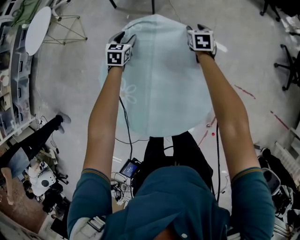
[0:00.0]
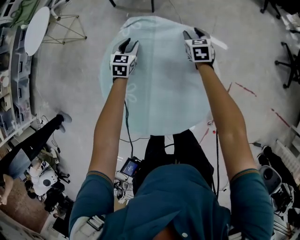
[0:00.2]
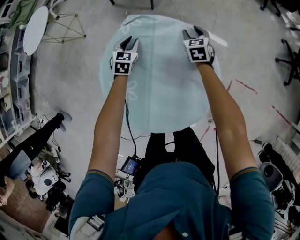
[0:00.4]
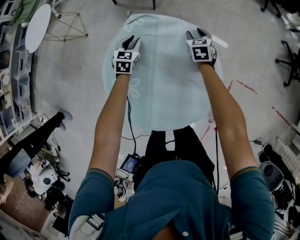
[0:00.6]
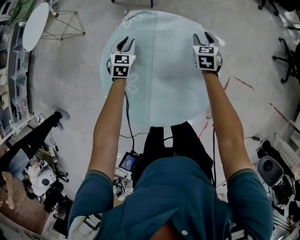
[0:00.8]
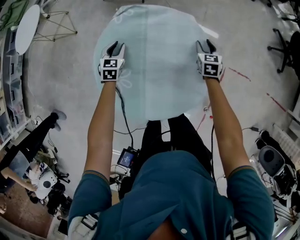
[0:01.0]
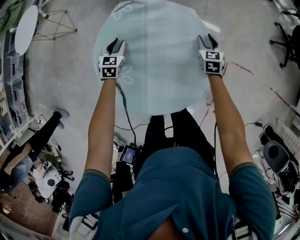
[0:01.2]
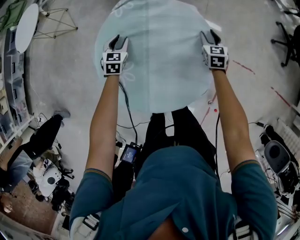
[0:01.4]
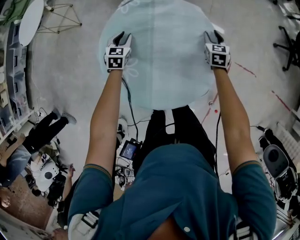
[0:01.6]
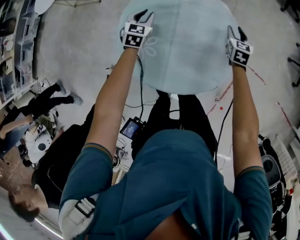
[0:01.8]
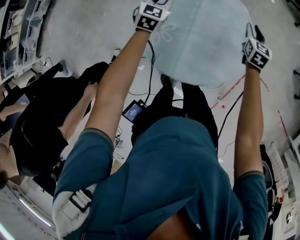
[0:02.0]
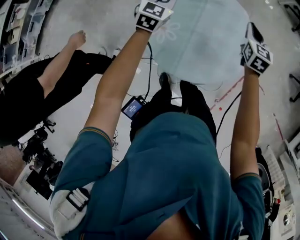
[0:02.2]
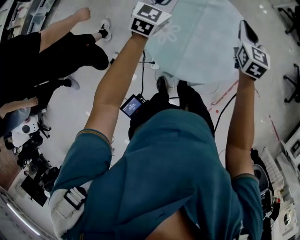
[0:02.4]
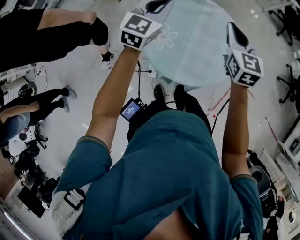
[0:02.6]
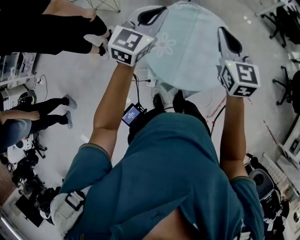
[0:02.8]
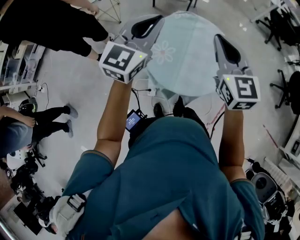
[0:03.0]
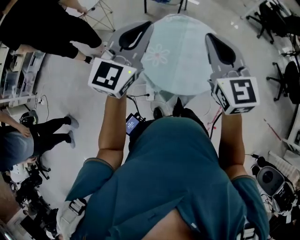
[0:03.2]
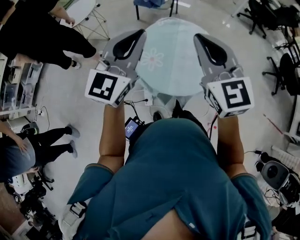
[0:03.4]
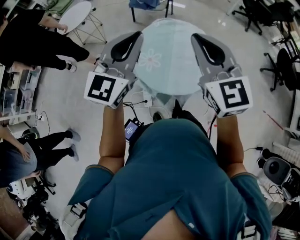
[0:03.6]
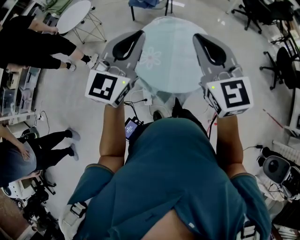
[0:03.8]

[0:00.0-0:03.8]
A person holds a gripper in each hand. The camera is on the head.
0.0 to 1.2 s: The right gripper travels backward and to the right by some 20 cm. The left gripper is displaced backward by some 15 cm, and closes its fingers.
1.2 to 2.6 s: The right gripper shifts approximately 40 cm upward and to the left, turns by about 30 degrees, and closes its fingers. The left gripper moves upward, approximately 35 cm, rotates about 30 degrees, and closes up.
2.6 to 3.8 s: The right gripper is displaced backward, upward and to the left by some 30 cm. The left gripper is displaced backward and upward by approximately 25 cm.

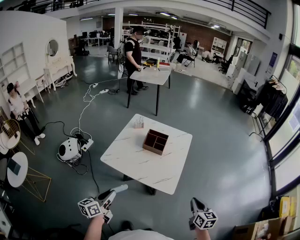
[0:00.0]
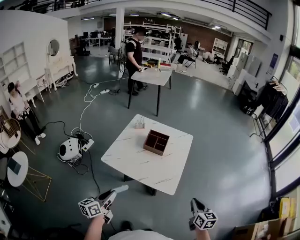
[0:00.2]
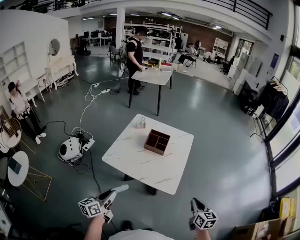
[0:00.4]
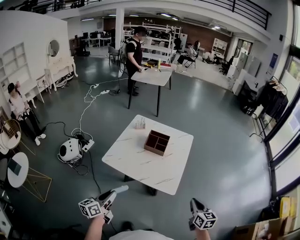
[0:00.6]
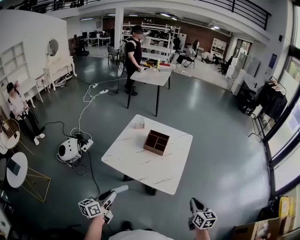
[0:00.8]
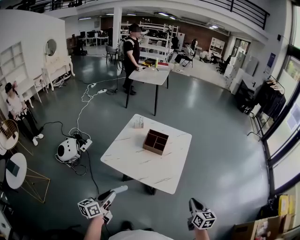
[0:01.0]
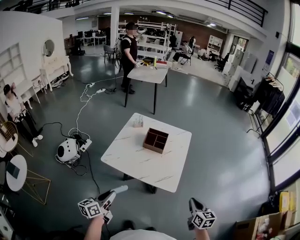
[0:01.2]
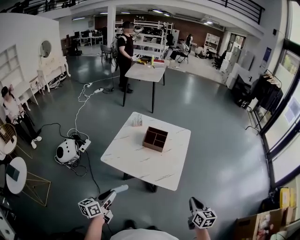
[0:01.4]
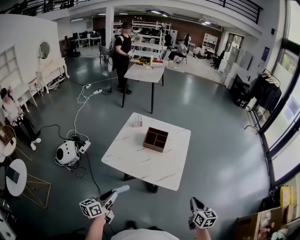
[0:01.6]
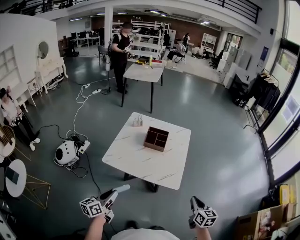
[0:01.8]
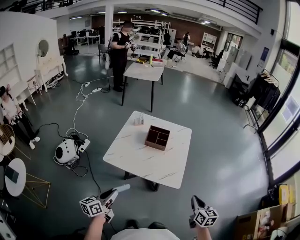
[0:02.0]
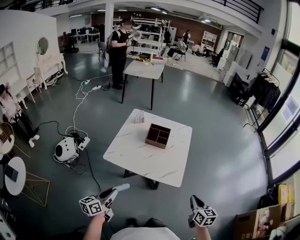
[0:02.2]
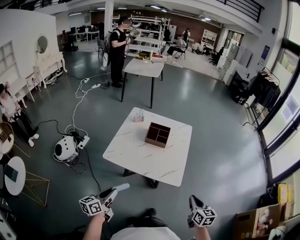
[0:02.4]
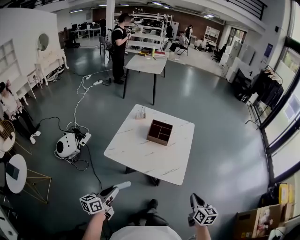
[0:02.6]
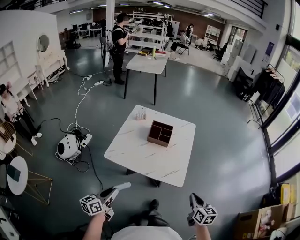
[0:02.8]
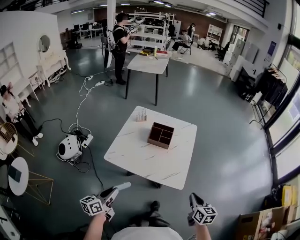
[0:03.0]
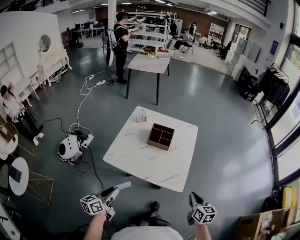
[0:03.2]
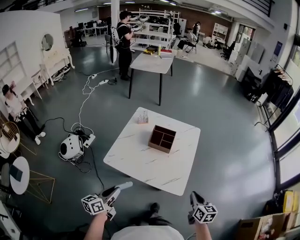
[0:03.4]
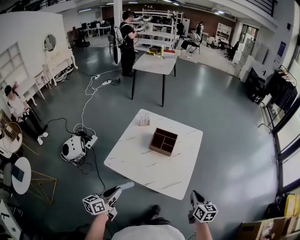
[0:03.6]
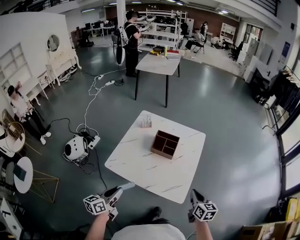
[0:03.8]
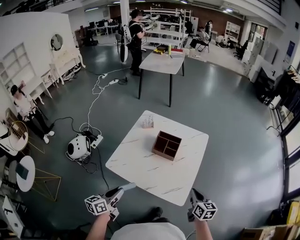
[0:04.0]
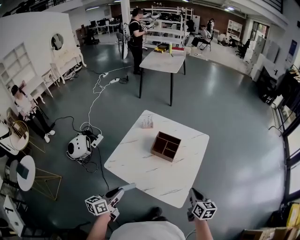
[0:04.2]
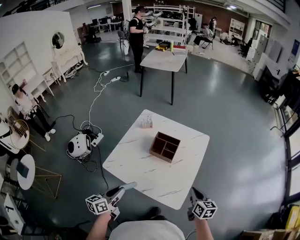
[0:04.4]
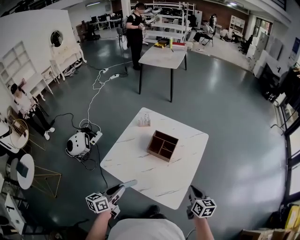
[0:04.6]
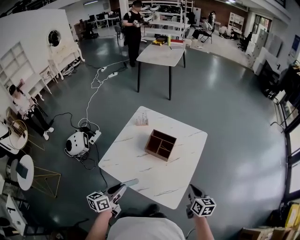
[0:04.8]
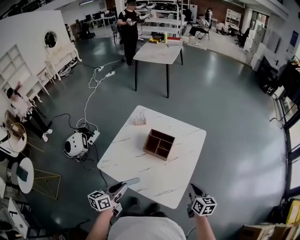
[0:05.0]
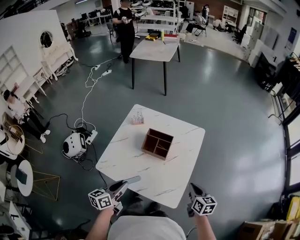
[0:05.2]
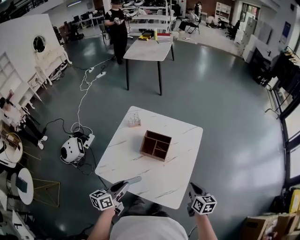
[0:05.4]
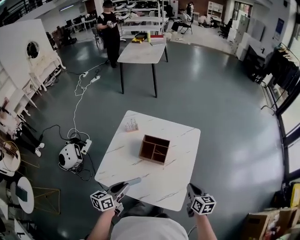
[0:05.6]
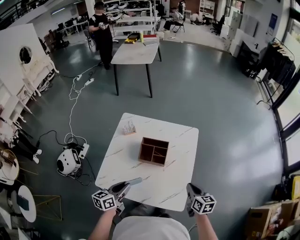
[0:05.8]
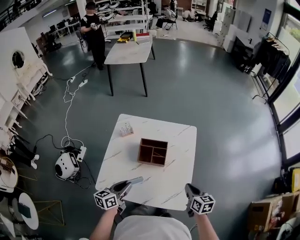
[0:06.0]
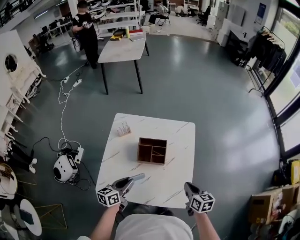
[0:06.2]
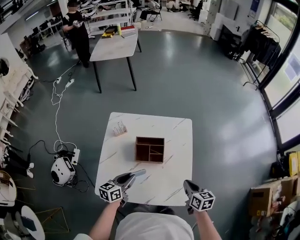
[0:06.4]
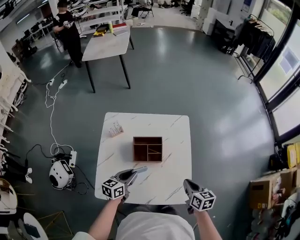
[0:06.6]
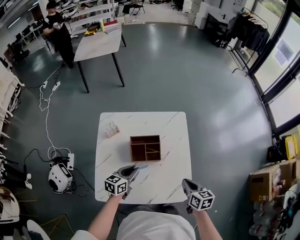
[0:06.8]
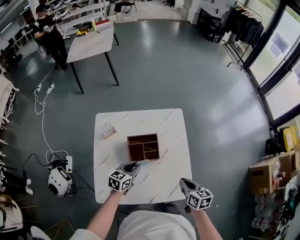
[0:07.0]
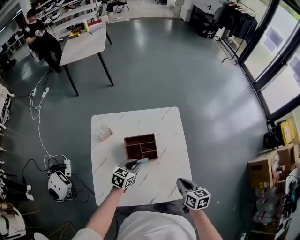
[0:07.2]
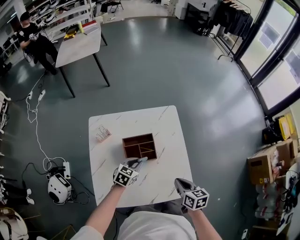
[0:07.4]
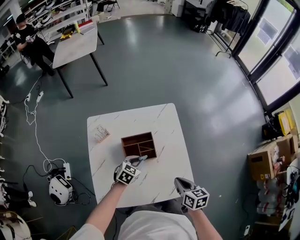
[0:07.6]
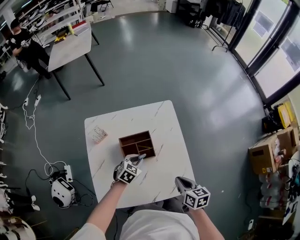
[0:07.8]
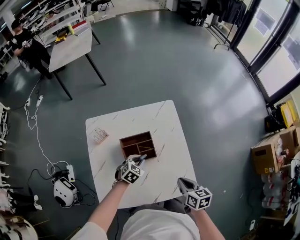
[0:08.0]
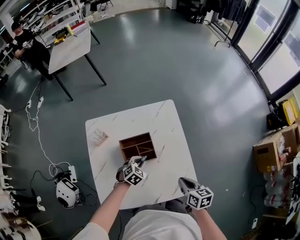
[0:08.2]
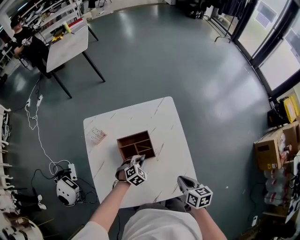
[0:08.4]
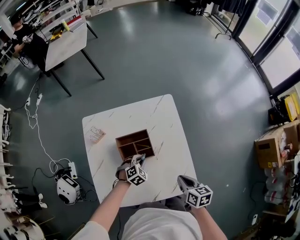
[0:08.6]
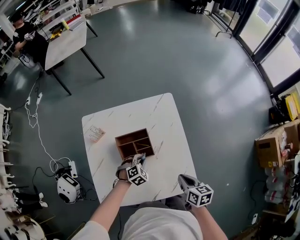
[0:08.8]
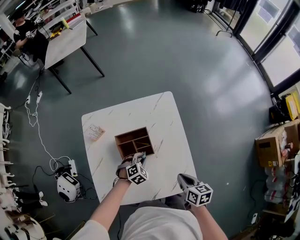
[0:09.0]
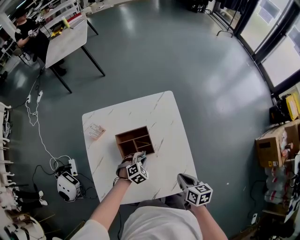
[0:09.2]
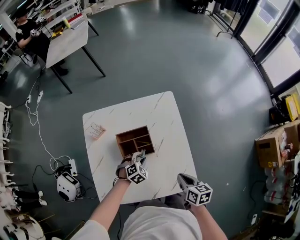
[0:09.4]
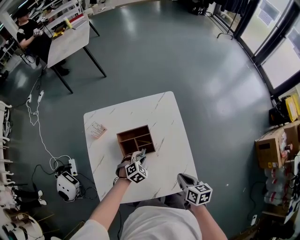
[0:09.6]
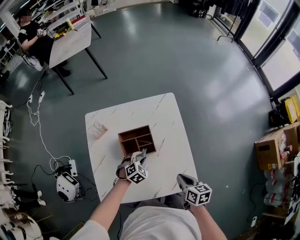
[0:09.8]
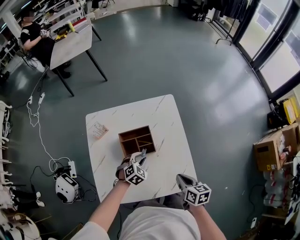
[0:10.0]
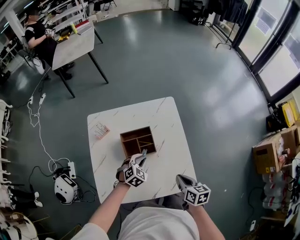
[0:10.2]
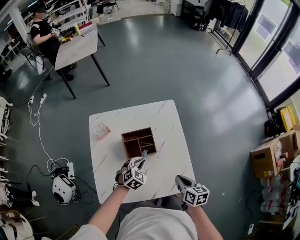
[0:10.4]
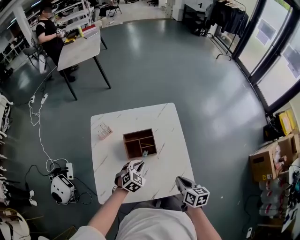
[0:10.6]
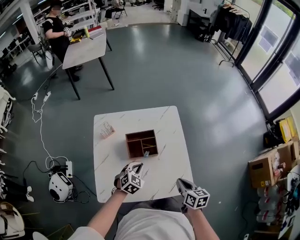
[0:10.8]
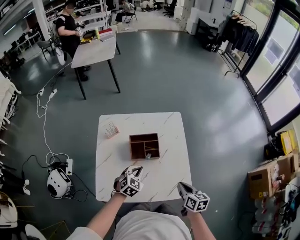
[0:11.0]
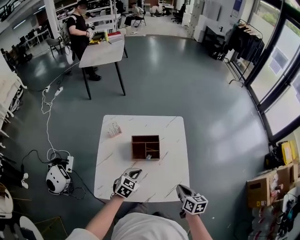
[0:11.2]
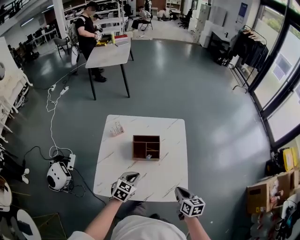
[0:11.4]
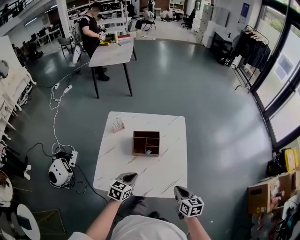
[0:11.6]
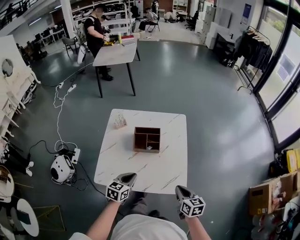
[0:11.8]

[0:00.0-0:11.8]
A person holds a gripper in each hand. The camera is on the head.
0.0 to 1.4 s: The grippers stay close to where they were, moving slightly.
1.4 to 3.0 s: The right gripper shifts by roughly 5 cm.
3.0 to 4.4 s: The left gripper shifts about 15 cm forward and to the right. The right gripper goes some 20 cm forward.
4.4 to 6.0 s: The left gripper is displaced forward by approximately 20 cm, and rotates some 20 degrees. The right gripper travels forward by approximately 5 cm.
6.0 to 7.4 s: The left gripper moves forward and downward, some 20 cm, and changes its angle by approximately 50 degrees. The right gripper goes some 10 cm to the left.
7.4 to 8.8 s: The left gripper moves downward, about 10 cm, and swivels approximately 40 degrees, while the right gripper changes place by about 5 cm.
8.8 to 10.4 s: The left gripper travels upward by some 10 cm.
10.4 to 11.8 s: The right gripper travels backward by roughly 10 cm. Meanwhile the left gripper goes some 20 cm backward and upward, and rolls counterclockwise, seen from behind, by about 40 degrees.

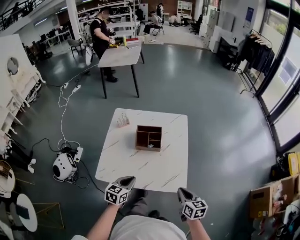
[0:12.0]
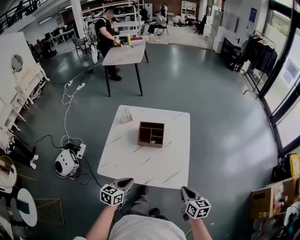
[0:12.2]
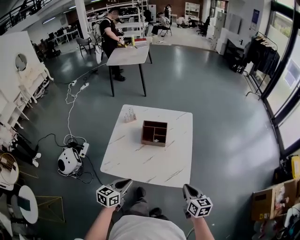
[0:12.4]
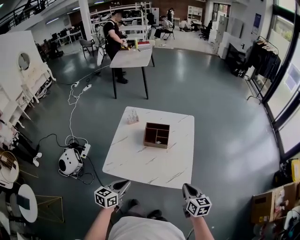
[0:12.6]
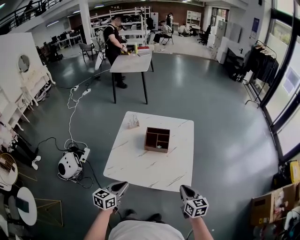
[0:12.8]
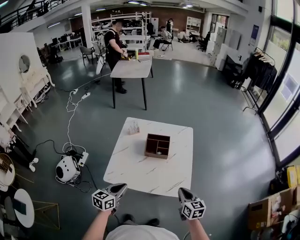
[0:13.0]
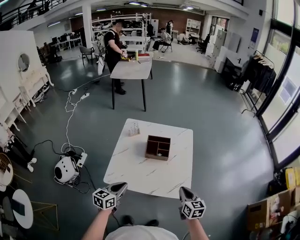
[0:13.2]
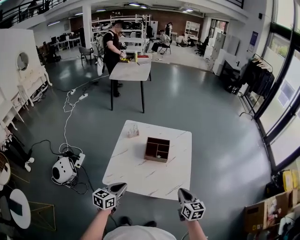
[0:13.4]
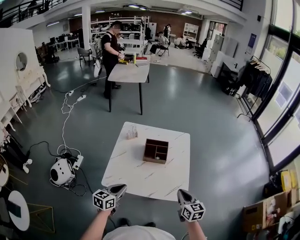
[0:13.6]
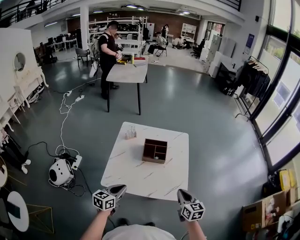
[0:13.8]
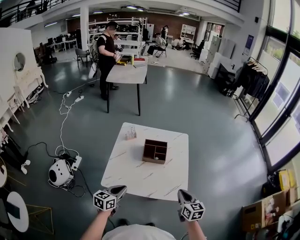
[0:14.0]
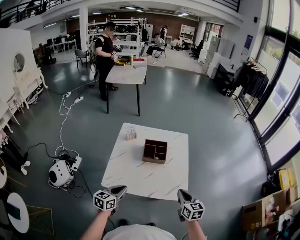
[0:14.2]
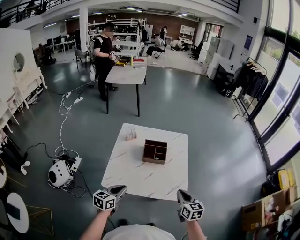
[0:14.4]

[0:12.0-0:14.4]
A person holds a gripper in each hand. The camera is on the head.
12.0 to 13.2 s: The right gripper goes some 5 cm upward and to the left. The left gripper goes roughly 15 cm to the left, upward and backward.
13.2 to 14.4 s: The grippers stay close to where they were, moving slightly.

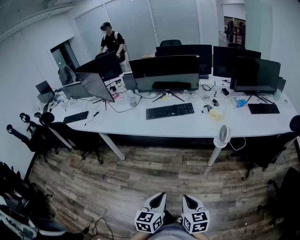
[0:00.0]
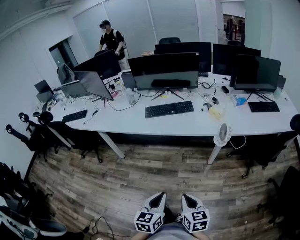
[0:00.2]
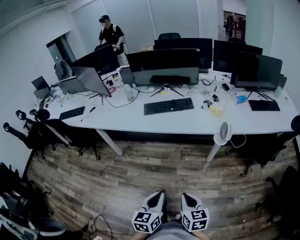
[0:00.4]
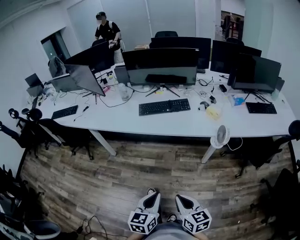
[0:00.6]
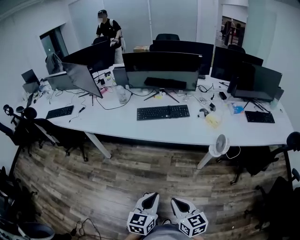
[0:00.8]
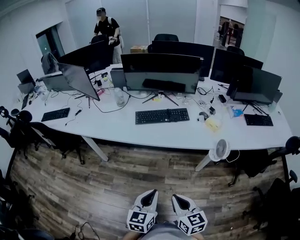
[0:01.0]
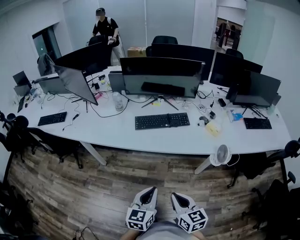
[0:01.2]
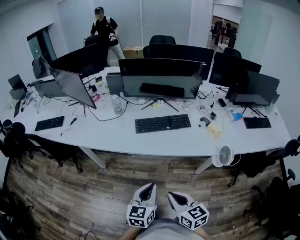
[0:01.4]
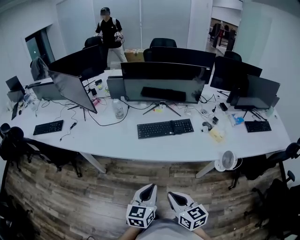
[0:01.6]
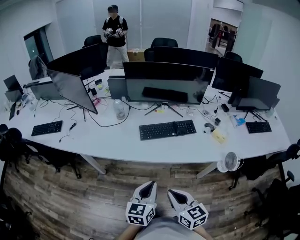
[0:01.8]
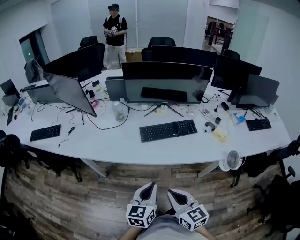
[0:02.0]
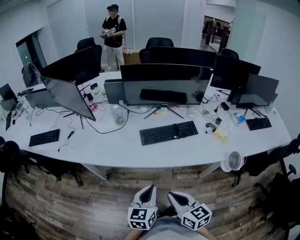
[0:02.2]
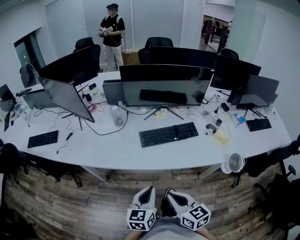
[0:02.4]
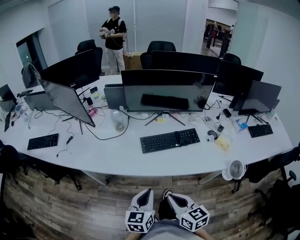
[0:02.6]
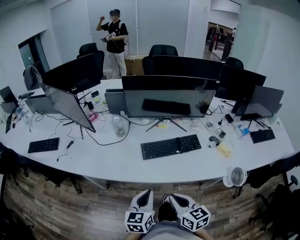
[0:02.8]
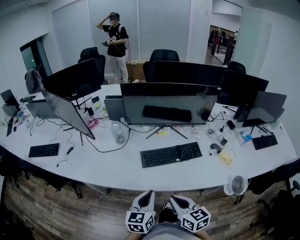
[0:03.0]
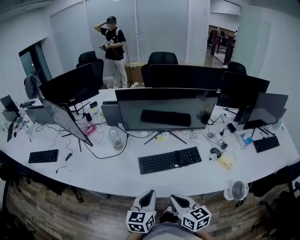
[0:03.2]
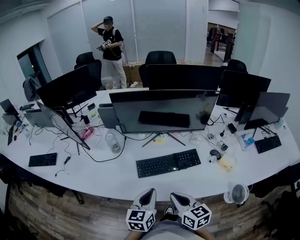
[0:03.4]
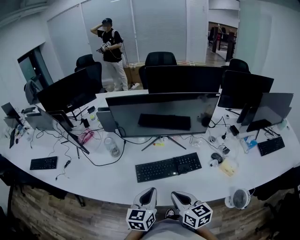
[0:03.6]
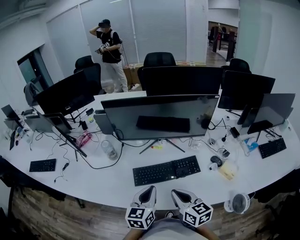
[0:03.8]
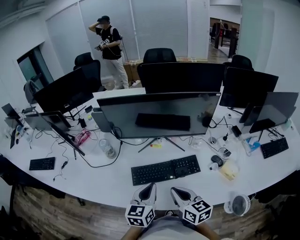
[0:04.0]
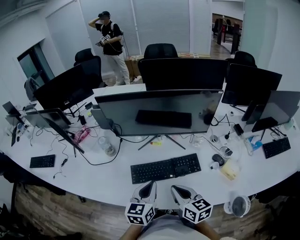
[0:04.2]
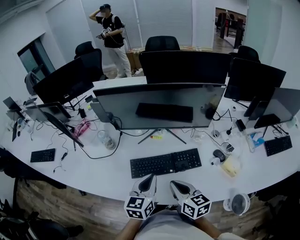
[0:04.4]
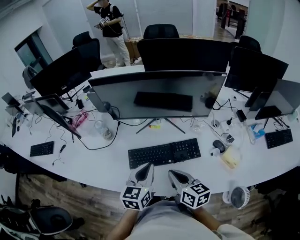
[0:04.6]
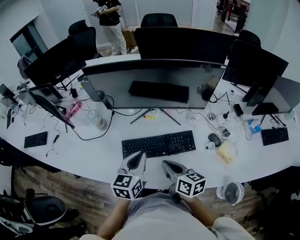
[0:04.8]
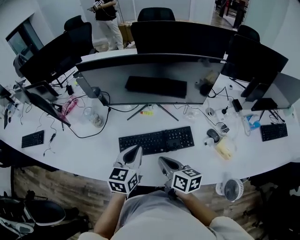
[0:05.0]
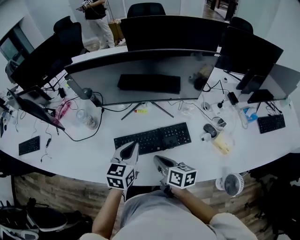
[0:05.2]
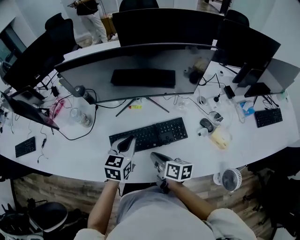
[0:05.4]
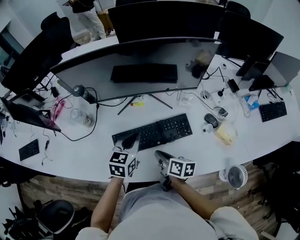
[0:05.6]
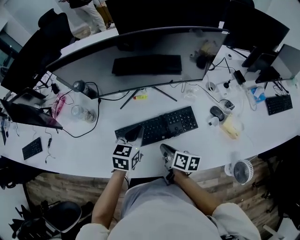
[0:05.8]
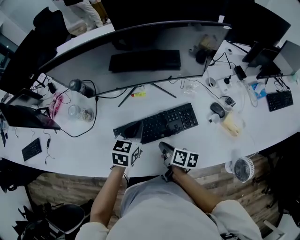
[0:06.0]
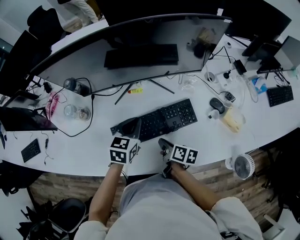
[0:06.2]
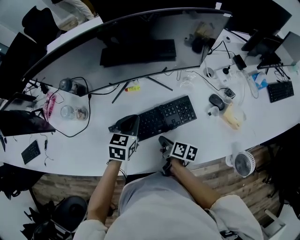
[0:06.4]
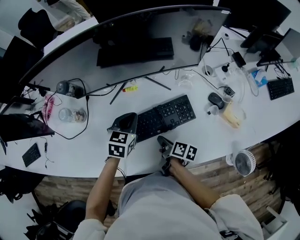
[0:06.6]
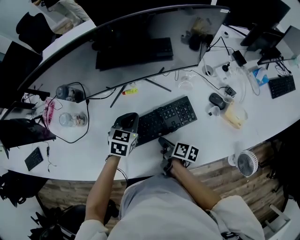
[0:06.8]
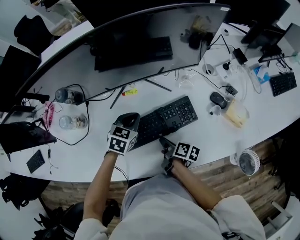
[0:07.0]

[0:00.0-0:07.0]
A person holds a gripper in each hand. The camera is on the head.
0.0 to 1.4 s: The left gripper travels forward by some 30 cm. The right gripper travels forward and to the left by some 30 cm.
1.4 to 2.8 s: The left gripper heads forward and to the left, covering approximately 20 cm, while the right gripper heads forward, covering approximately 20 cm.
2.8 to 4.2 s: Both grippers move forward and to the right, about 25 cm.
4.2 to 5.6 s: The right gripper shifts some 15 cm downward and forward, and rotates approximately 40 degrees. Meanwhile the left gripper moves forward and downward, about 15 cm.
5.6 to 7.0 s: The left gripper heads downward and forward, covering about 15 cm, and changes its angle by about 30 degrees. The right gripper heads downward, covering some 10 cm, and swivels roughly 30 degrees.
